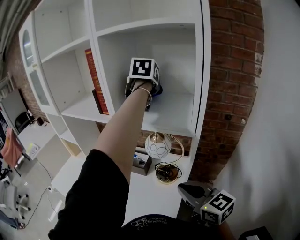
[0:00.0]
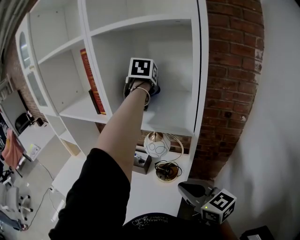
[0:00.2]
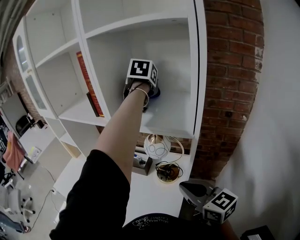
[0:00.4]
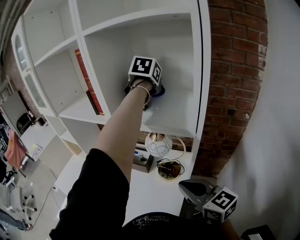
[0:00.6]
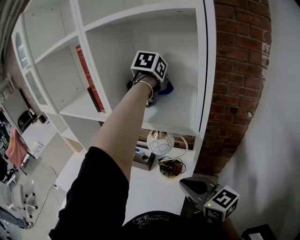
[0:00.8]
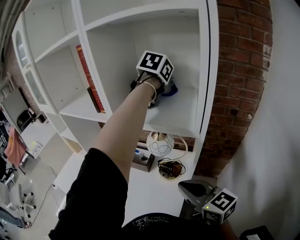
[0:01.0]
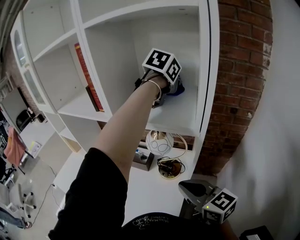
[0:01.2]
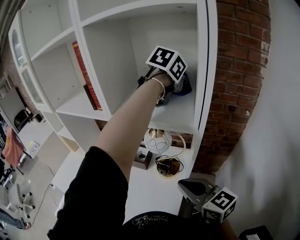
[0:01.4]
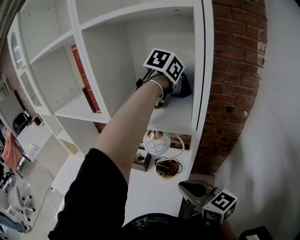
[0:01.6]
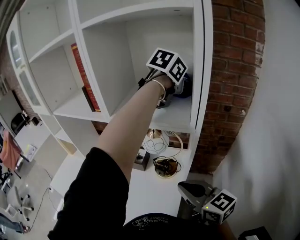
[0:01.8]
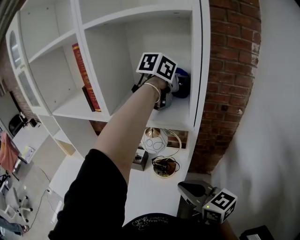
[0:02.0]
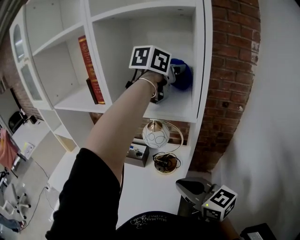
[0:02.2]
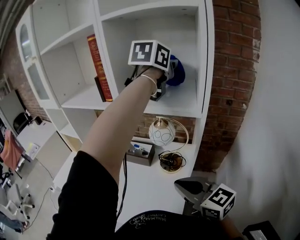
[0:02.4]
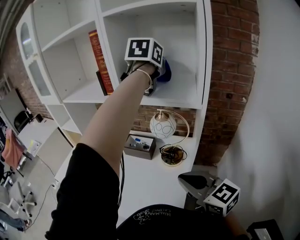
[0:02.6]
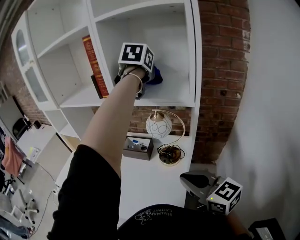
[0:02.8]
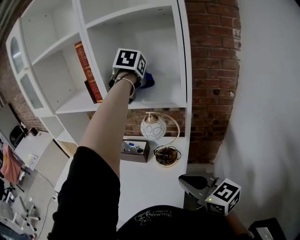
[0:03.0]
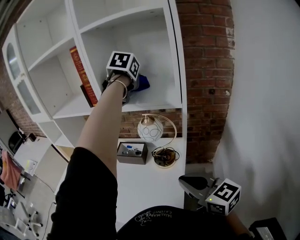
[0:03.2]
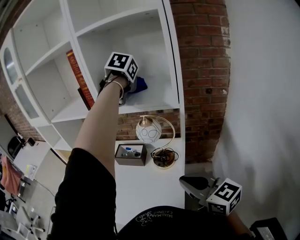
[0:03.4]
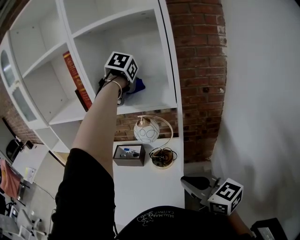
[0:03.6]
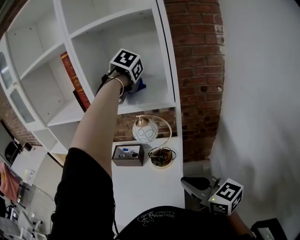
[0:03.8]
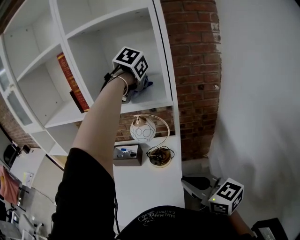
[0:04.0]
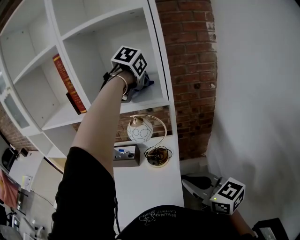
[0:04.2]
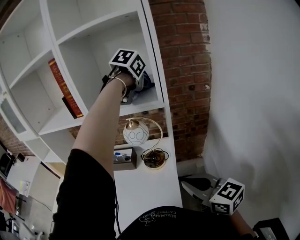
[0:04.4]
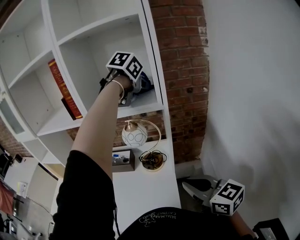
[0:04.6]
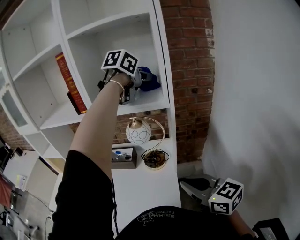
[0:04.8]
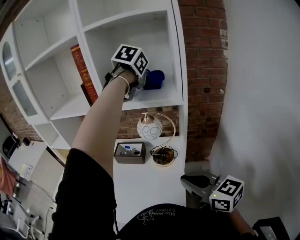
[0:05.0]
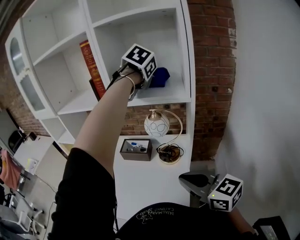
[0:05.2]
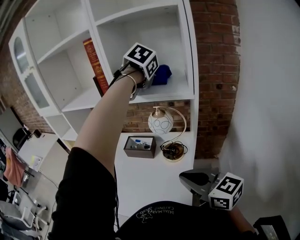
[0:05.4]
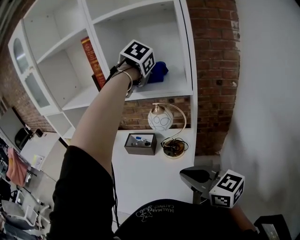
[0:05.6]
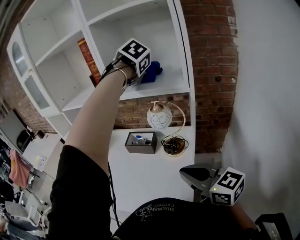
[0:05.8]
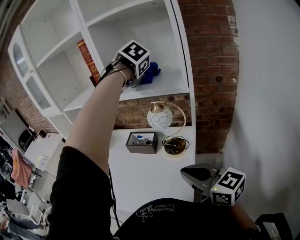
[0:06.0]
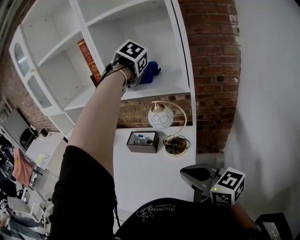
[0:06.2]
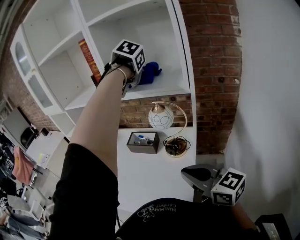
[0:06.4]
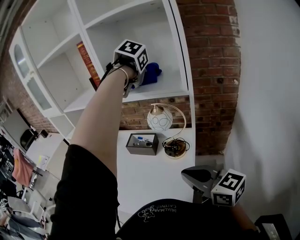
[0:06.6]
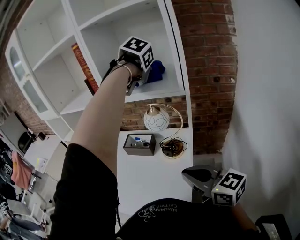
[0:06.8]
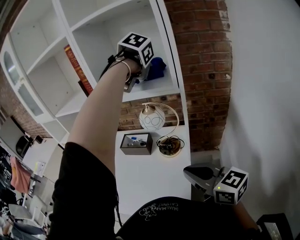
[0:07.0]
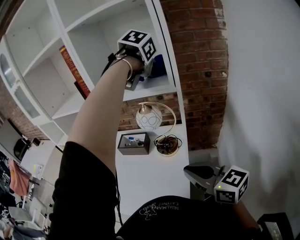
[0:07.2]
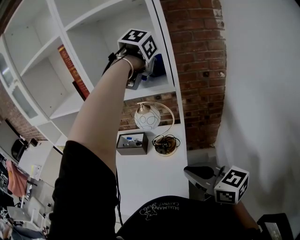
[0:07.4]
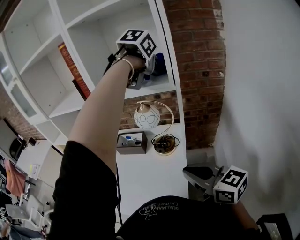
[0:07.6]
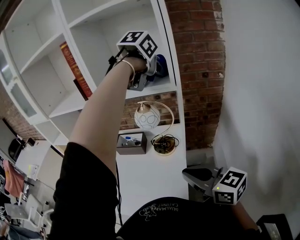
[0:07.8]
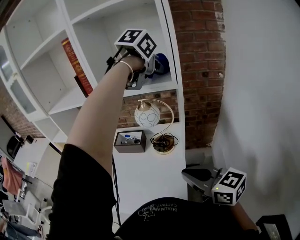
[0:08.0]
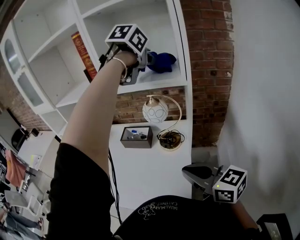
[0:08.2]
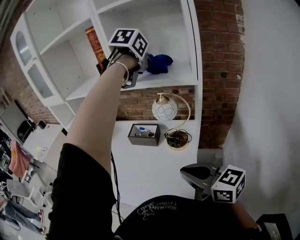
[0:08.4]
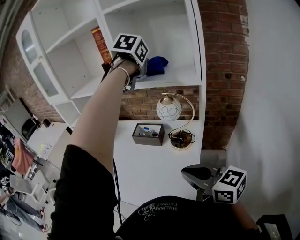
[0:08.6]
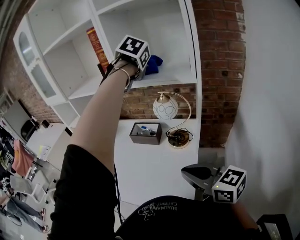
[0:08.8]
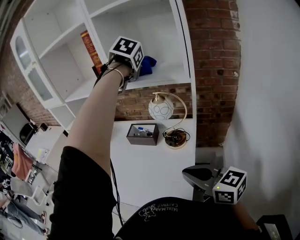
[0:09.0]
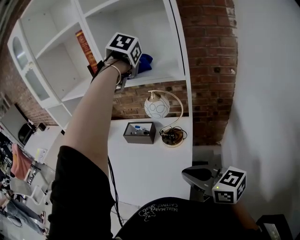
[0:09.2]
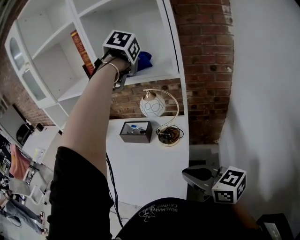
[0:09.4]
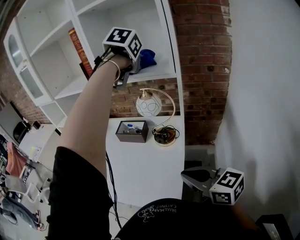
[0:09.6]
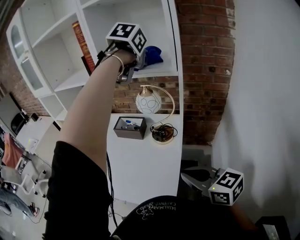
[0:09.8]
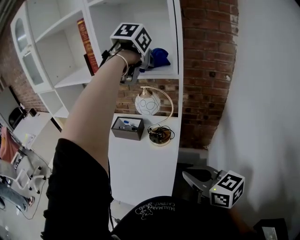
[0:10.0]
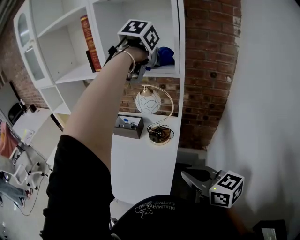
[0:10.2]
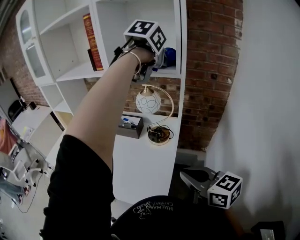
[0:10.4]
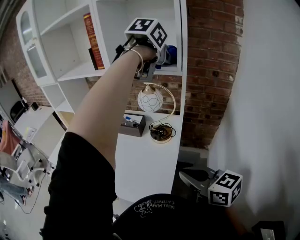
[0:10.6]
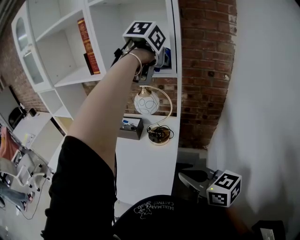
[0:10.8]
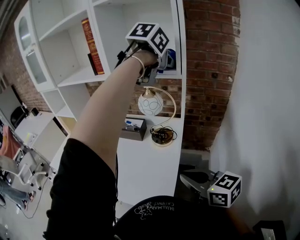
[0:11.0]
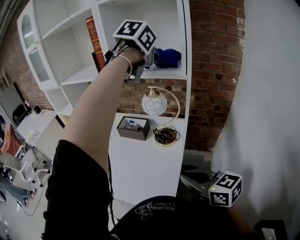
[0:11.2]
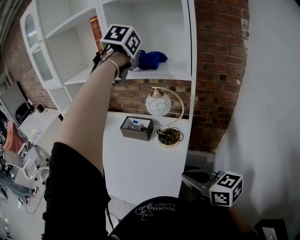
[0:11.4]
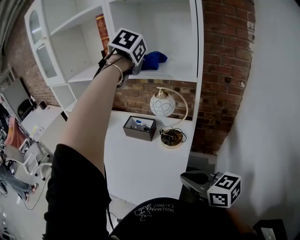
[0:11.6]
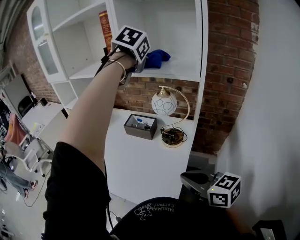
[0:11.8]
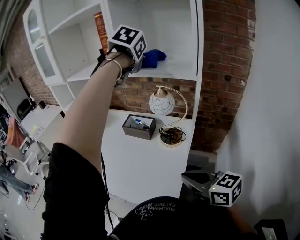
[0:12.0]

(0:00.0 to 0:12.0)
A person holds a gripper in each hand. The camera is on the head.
0:00.0 - 0:01.6: The left gripper goes about 15 cm to the right and backward, and swivels some 40 degrees.
0:01.6 - 0:03.0: The right gripper is displaced backward by about 10 cm; the left gripper moves to the left, approximately 15 cm, and swivels approximately 30 degrees.
0:03.0 - 0:04.4: The left gripper goes approximately 15 cm to the right and backward, and changes its angle by some 30 degrees.
0:04.4 - 0:06.0: The right gripper ends up roughly 5 cm from where it was. The left gripper moves roughly 15 cm, and changes its angle by roughly 40 degrees.
0:06.0 - 0:07.6: The left gripper changes place by some 15 cm, and changes its angle by roughly 30 degrees.
0:07.6 - 0:09.0: The right gripper changes place by roughly 5 cm, while the left gripper ends up approximately 15 cm from where it was, and turns by approximately 30 degrees.
0:09.0 - 0:10.4: The left gripper shifts roughly 15 cm to the right and backward, and changes its angle by approximately 30 degrees, while the right gripper shifts approximately 5 cm to the right.
0:10.4 - 0:12.0: The left gripper heads to the left and forward, covering approximately 15 cm, and swivels approximately 20 degrees.

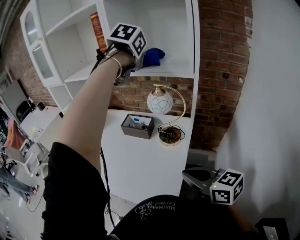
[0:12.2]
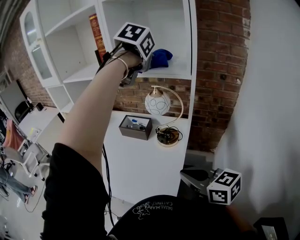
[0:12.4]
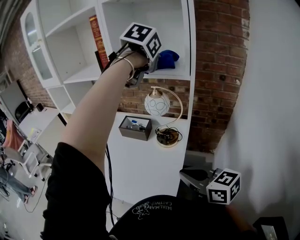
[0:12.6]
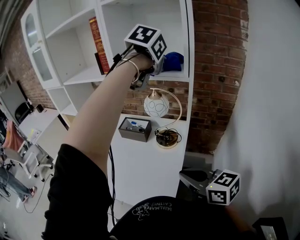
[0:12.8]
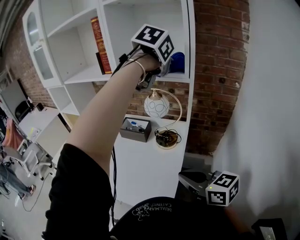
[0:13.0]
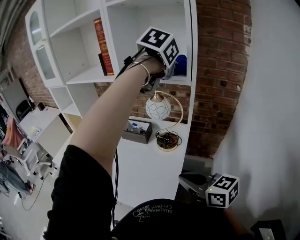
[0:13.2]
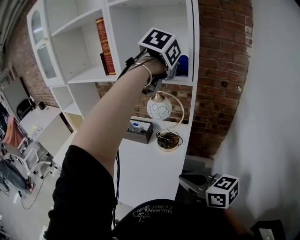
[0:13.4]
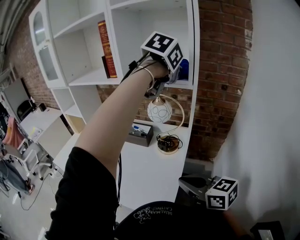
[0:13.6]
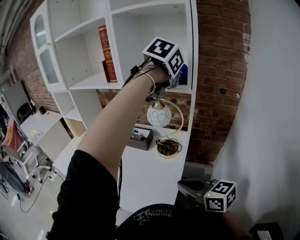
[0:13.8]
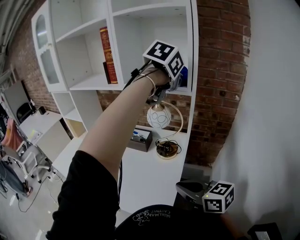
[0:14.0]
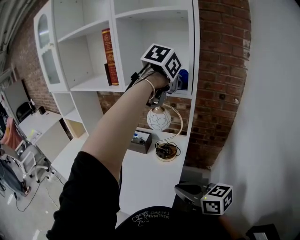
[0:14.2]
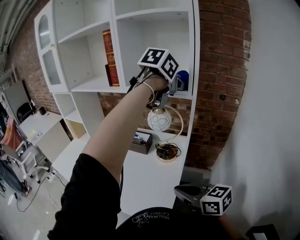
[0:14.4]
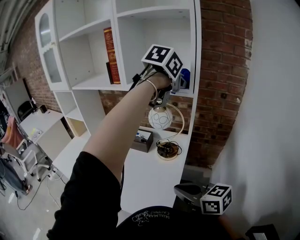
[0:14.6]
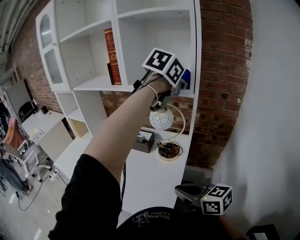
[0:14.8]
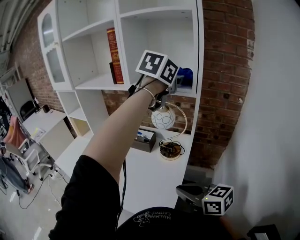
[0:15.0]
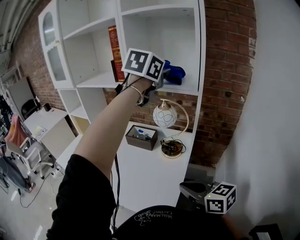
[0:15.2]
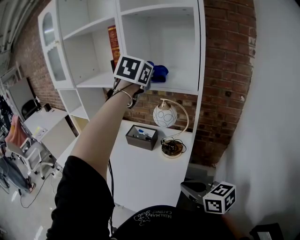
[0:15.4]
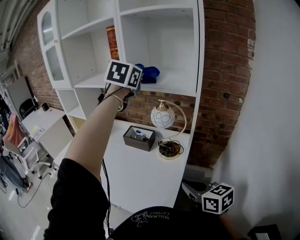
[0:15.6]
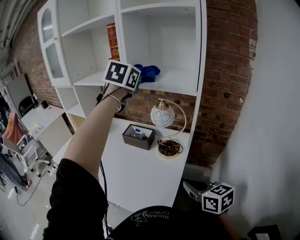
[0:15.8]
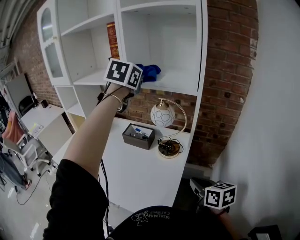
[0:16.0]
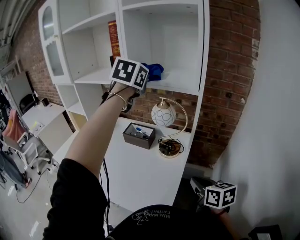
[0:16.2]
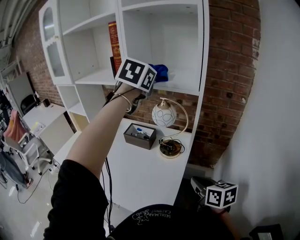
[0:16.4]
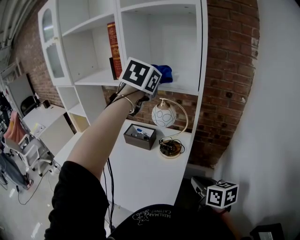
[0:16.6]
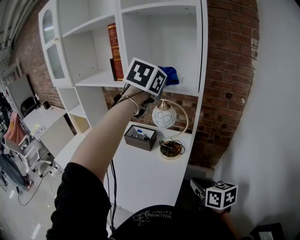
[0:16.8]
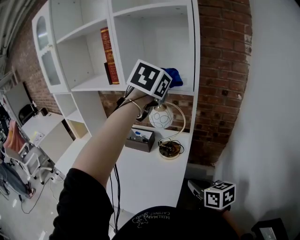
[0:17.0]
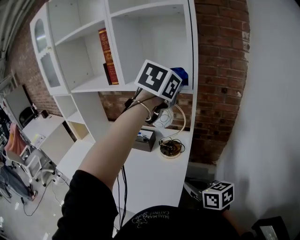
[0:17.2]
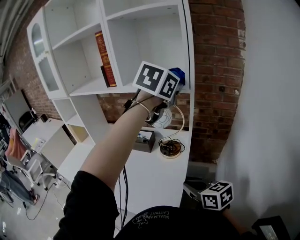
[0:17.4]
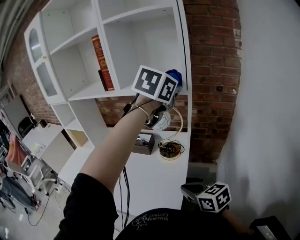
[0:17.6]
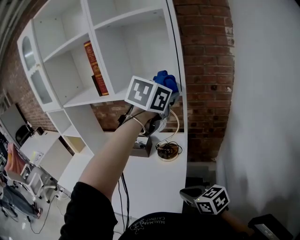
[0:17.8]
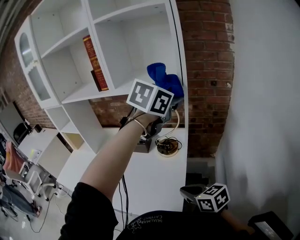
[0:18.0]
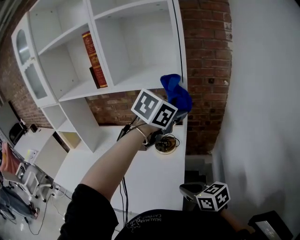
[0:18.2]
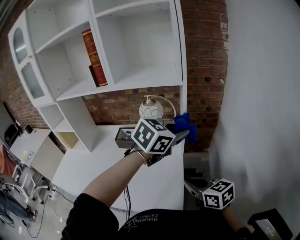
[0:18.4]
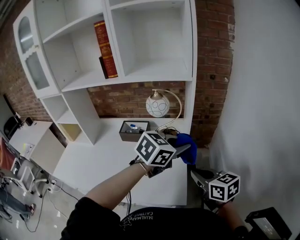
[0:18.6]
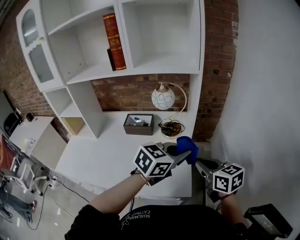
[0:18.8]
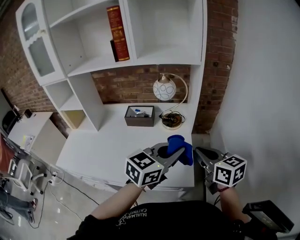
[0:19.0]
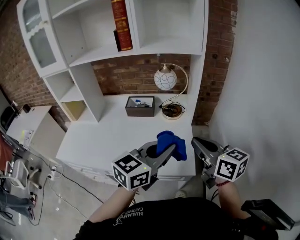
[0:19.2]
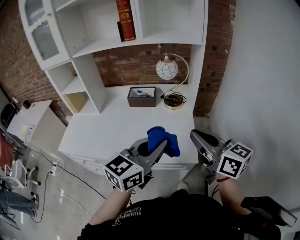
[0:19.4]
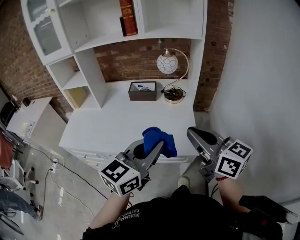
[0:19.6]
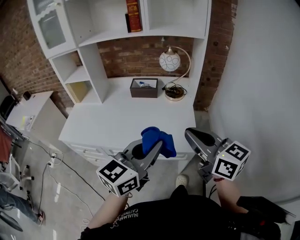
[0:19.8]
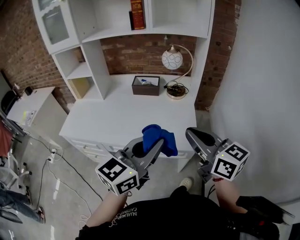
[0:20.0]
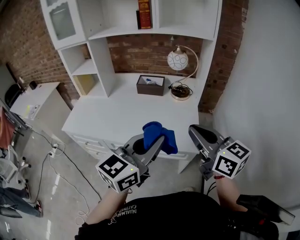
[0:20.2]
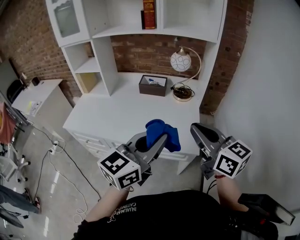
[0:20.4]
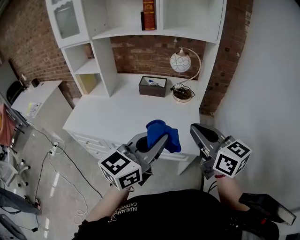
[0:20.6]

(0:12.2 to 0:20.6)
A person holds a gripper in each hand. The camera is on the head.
0:12.2 - 0:13.6: The left gripper shifts some 15 cm to the right and backward.
0:13.6 - 0:15.0: The grippers move only a little.
0:15.0 - 0:16.4: The right gripper travels to the right by some 10 cm, and rotates approximately 20 degrees. Meanwhile the left gripper moves to the left, approximately 10 cm, and turns by approximately 20 degrees.
0:16.4 - 0:17.8: The left gripper moves to the right and backward, roughly 15 cm, and swivels about 30 degrees; the right gripper moves to the left, roughly 5 cm.
0:17.8 - 0:19.2: The left gripper shifts by some 40 cm, and rotates about 30 degrees, while the right gripper travels upward by some 10 cm, and turns by roughly 30 degrees.
0:19.2 - 0:20.6: The two grippers go approximately 15 cm backward and to the left.

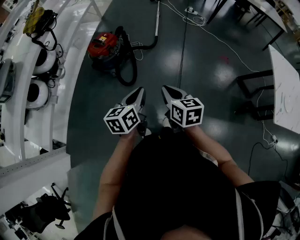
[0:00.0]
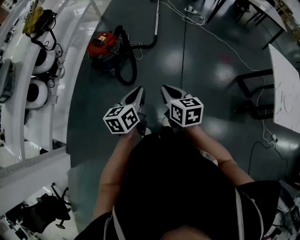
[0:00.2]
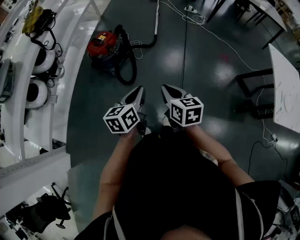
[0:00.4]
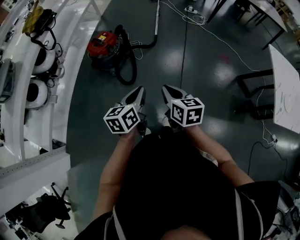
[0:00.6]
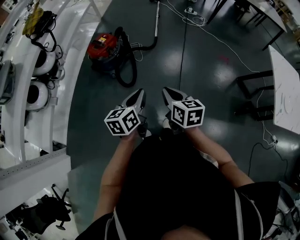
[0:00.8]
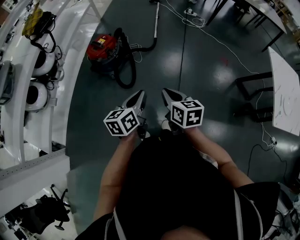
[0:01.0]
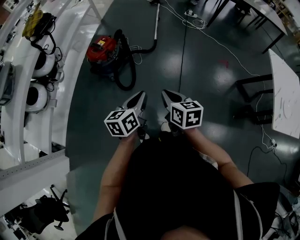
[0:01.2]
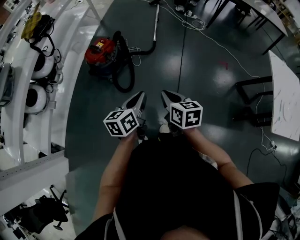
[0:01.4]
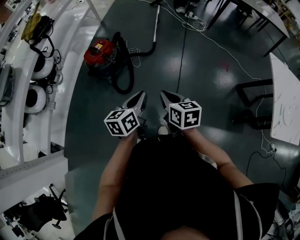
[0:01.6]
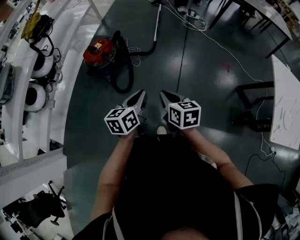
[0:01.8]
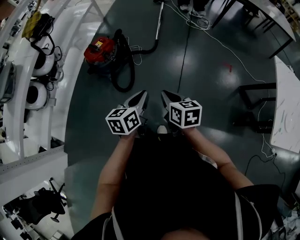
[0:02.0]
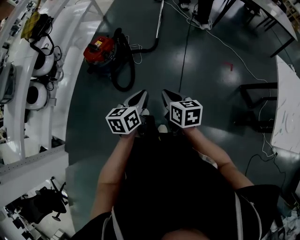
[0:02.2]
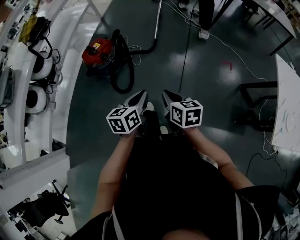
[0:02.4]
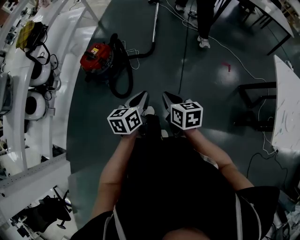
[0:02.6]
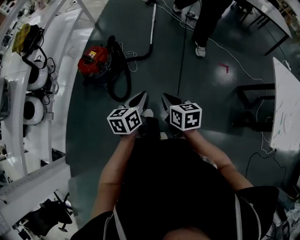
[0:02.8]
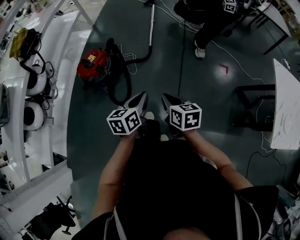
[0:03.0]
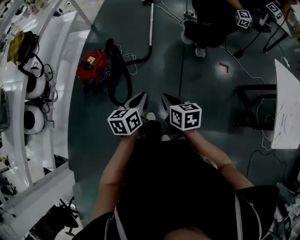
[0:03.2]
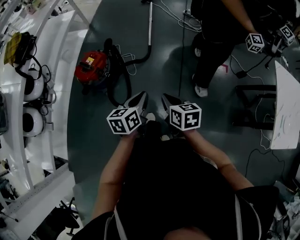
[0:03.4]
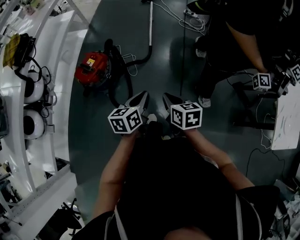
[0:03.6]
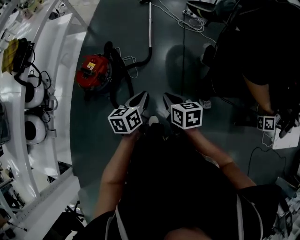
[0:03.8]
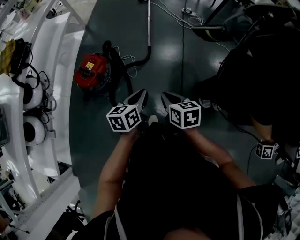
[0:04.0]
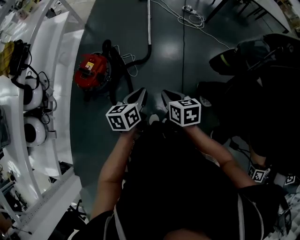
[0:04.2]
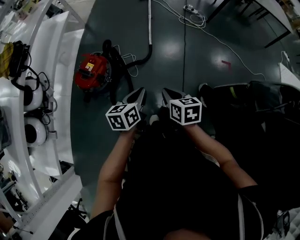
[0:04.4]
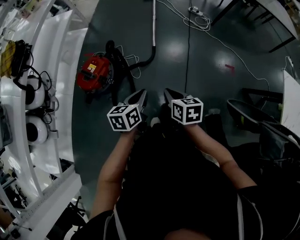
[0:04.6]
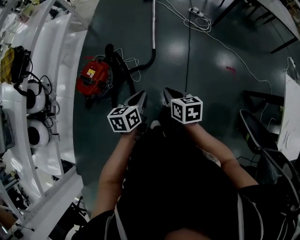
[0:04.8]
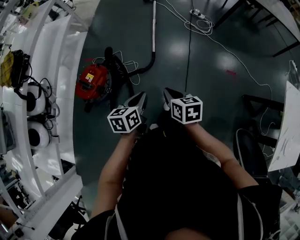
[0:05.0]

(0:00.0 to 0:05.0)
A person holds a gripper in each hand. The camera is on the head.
0:00.0 - 0:01.6: The left gripper moves to the right and forward, about 10 cm. The right gripper travels forward and to the right by about 10 cm.
0:01.6 - 0:03.4: Both grippers travel together forward, approximately 20 cm.
0:03.4 - 0:05.0: The two grippers go about 20 cm forward.
